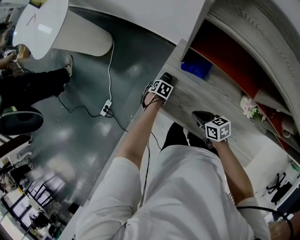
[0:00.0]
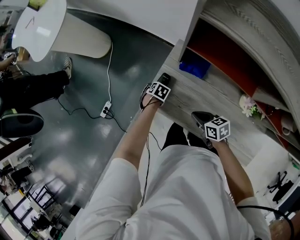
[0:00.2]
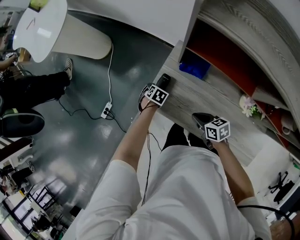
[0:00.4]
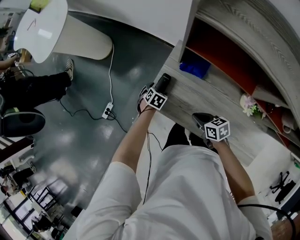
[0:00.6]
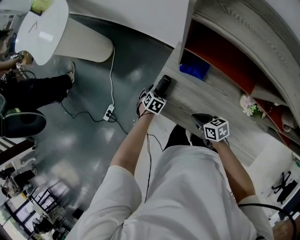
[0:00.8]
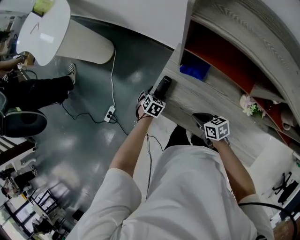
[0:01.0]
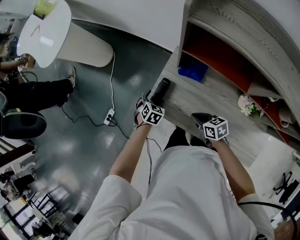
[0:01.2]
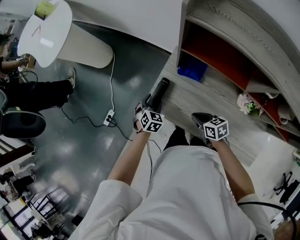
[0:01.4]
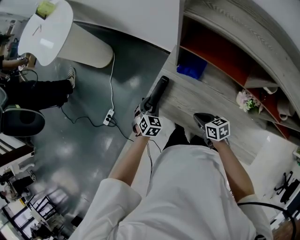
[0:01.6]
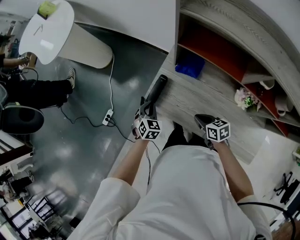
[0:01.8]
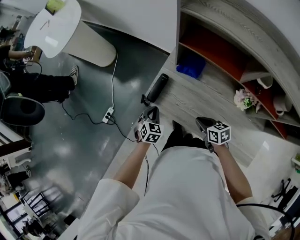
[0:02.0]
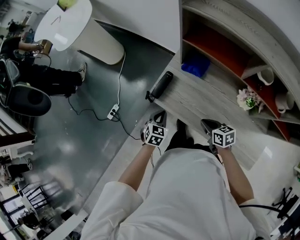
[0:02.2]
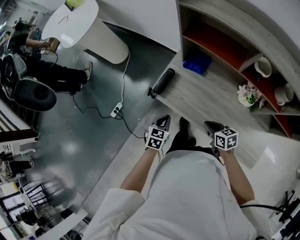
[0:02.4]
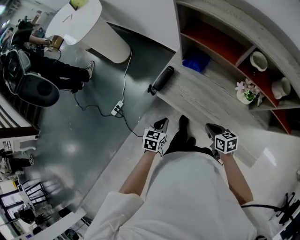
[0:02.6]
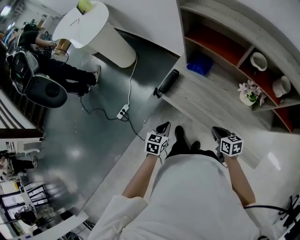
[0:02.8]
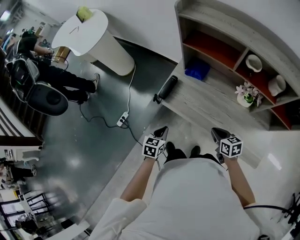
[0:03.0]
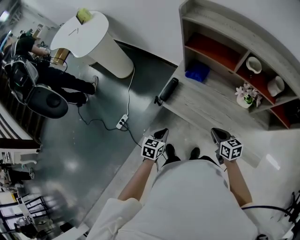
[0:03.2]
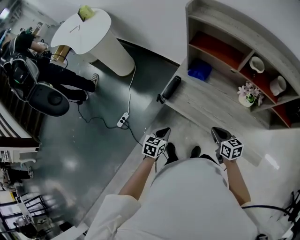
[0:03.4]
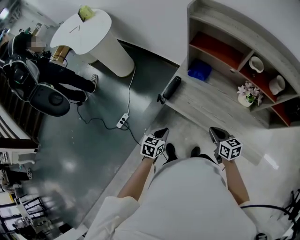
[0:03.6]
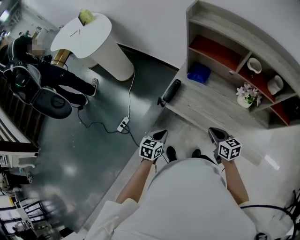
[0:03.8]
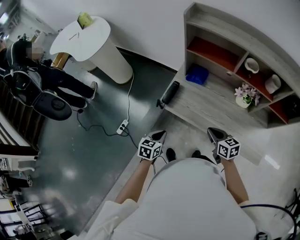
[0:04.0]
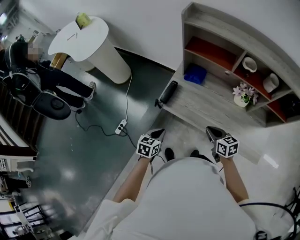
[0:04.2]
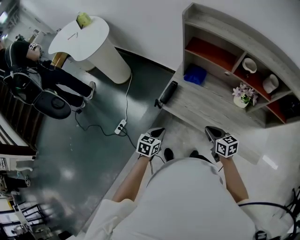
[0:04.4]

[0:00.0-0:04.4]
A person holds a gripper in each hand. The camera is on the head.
0:00.0 to 0:01.4: The left gripper moves upward, about 15 cm, and changes its angle by approximately 40 degrees.
0:01.4 to 0:03.0: Both grippers travel together backward, roughly 25 cm. The left gripper swivels roughly 30 degrees, and closes.
0:03.0 to 0:04.4: The right gripper goes approximately 10 cm to the left and upward, while the left gripper changes place by about 5 cm.

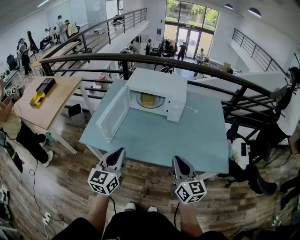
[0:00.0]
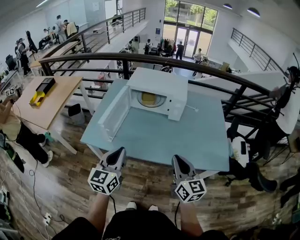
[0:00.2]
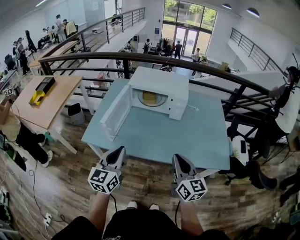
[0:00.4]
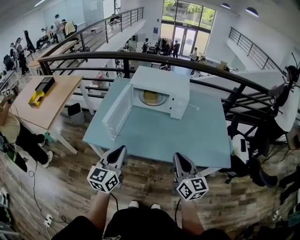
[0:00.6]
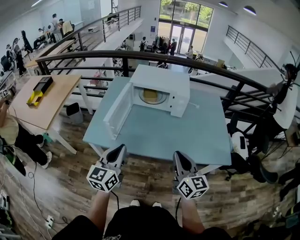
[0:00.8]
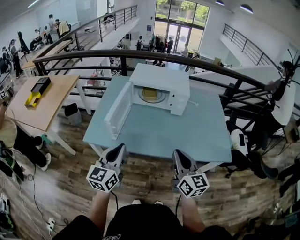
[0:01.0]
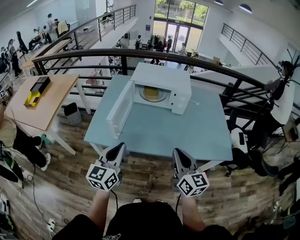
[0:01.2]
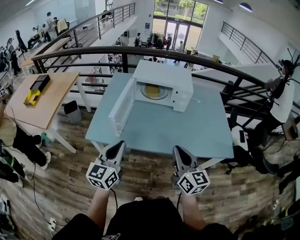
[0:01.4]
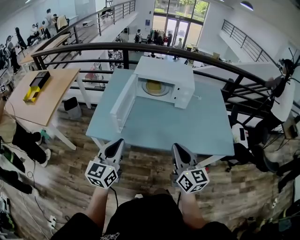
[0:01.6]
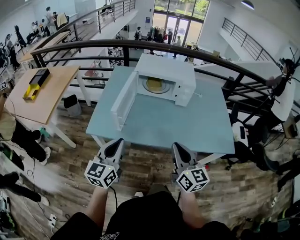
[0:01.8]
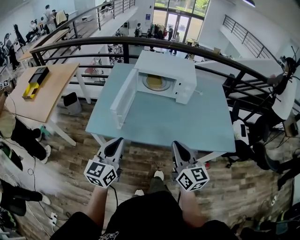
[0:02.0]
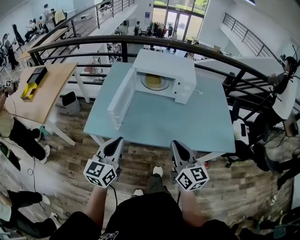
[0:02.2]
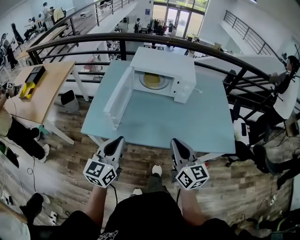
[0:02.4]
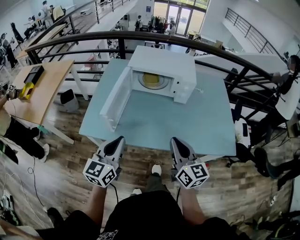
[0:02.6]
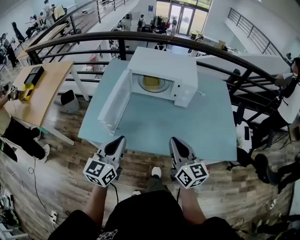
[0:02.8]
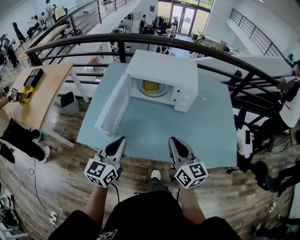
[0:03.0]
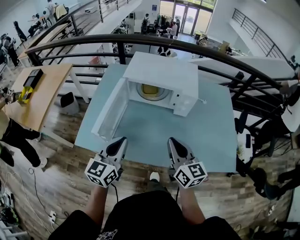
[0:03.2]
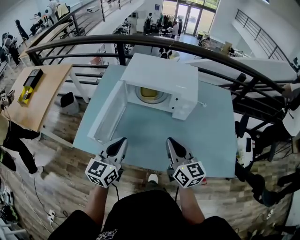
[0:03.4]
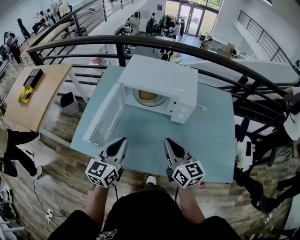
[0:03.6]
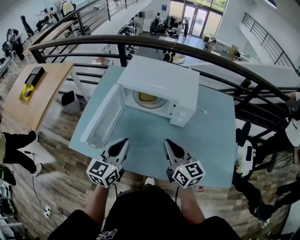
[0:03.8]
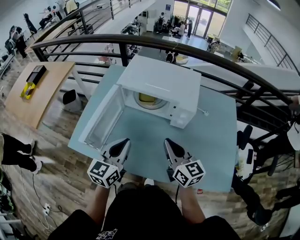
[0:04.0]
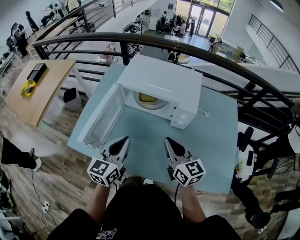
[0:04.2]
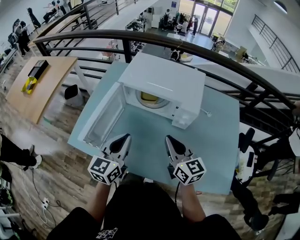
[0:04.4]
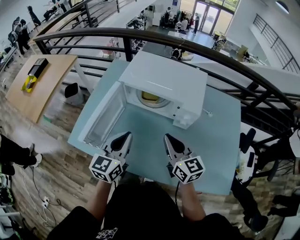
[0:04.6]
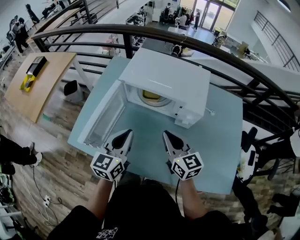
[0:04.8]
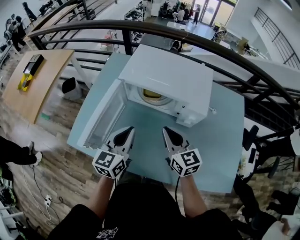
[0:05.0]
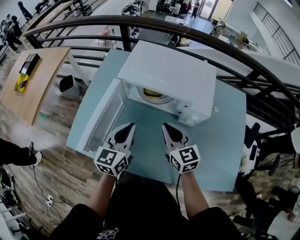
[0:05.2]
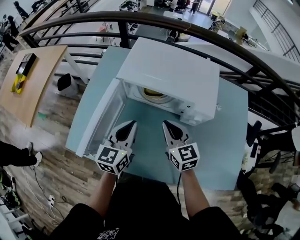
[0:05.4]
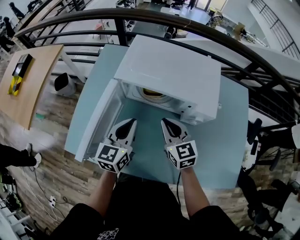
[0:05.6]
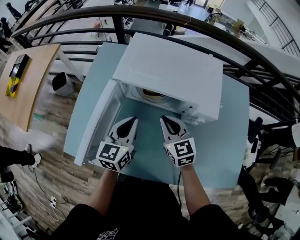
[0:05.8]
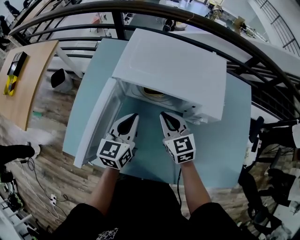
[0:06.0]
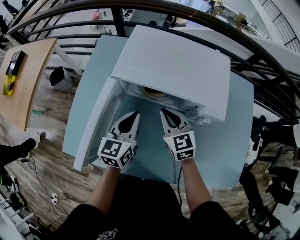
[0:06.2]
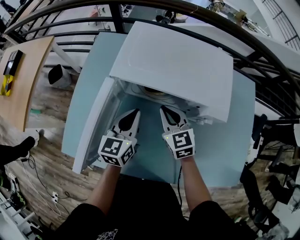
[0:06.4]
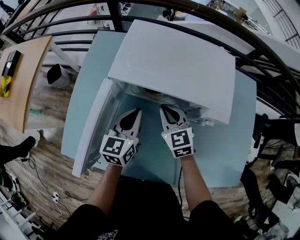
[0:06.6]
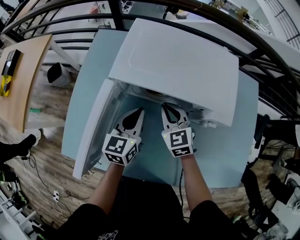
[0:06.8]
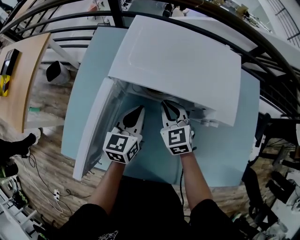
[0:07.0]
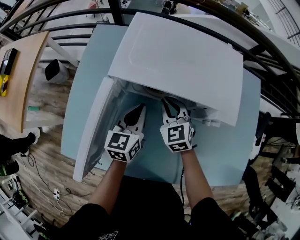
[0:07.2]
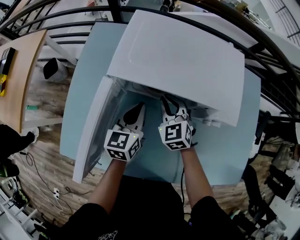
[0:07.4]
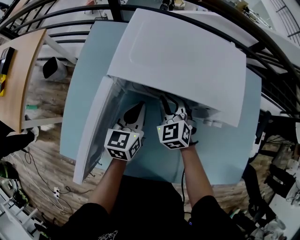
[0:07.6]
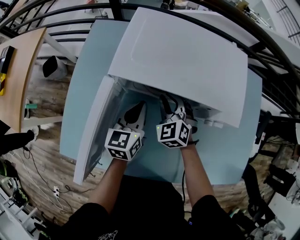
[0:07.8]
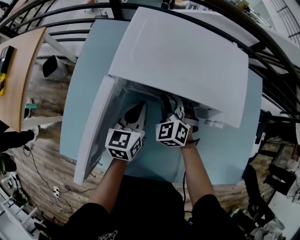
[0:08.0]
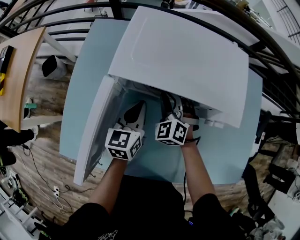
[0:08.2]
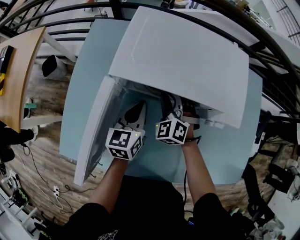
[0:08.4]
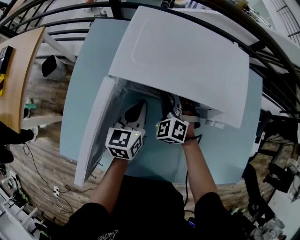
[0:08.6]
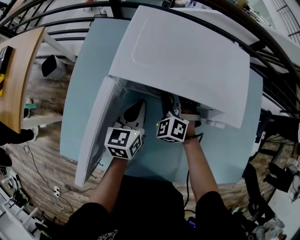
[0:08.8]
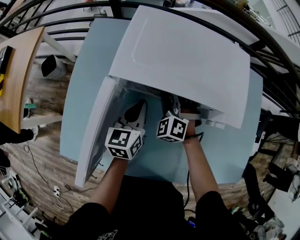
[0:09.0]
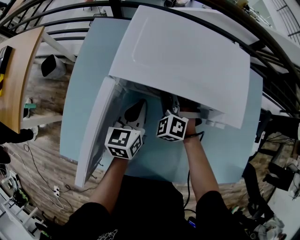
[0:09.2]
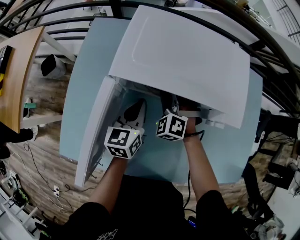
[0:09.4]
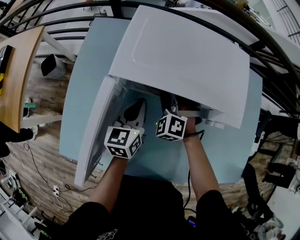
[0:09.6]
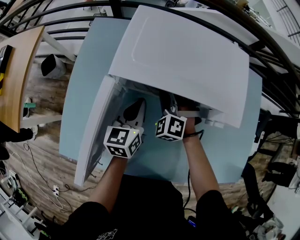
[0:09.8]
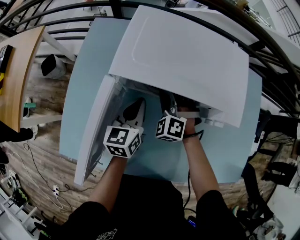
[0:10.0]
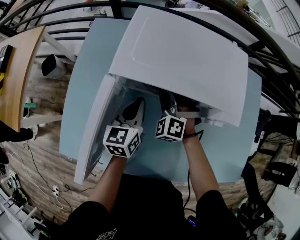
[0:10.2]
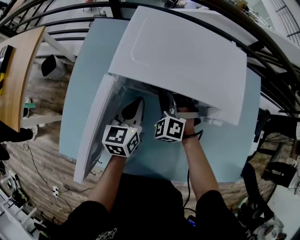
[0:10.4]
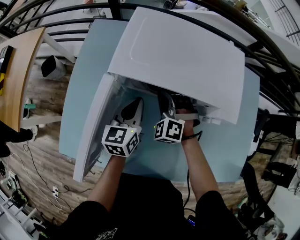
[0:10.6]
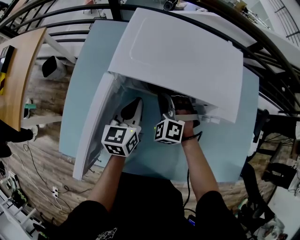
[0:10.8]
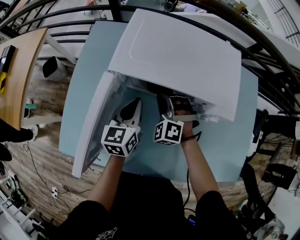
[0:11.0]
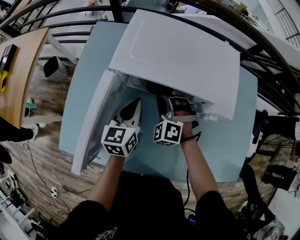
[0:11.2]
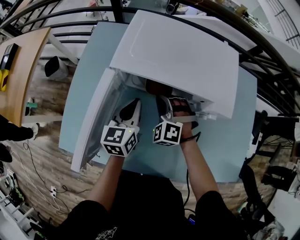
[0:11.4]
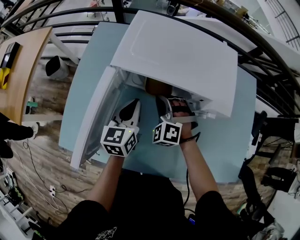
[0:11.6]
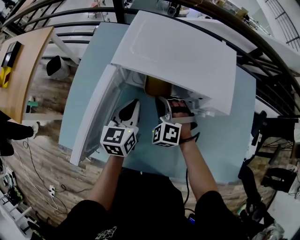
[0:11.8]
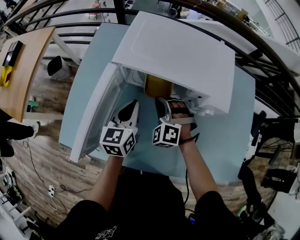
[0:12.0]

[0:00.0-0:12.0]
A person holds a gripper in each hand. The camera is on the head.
0:00.0 to 0:01.6: Both grippers move to the left, about 15 cm.
0:01.6 to 0:03.0: The left gripper is displaced forward and to the right by about 15 cm, while the right gripper moves forward, about 15 cm.
0:03.0 to 0:04.4: Both grippers travel together forward and to the right, roughly 15 cm.
0:04.4 to 0:06.0: The right gripper travels forward, downward and to the left by approximately 20 cm, and turns by roughly 20 degrees; the left gripper travels forward and downward by roughly 20 cm.
0:06.0 to 0:07.6: The grippers both shift downward and forward by some 10 cm. The right gripper swivels approximately 30 degrees.
0:07.6 to 0:09.0: The right gripper turns by some 30 degrees.
0:09.0 to 0:10.4: The grippers stay close to where they were, moving slightly.
0:10.4 to 0:12.0: Both grippers move backward, about 5 cm.

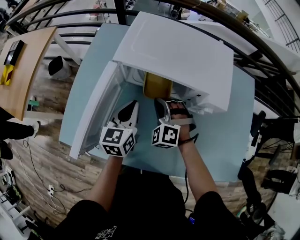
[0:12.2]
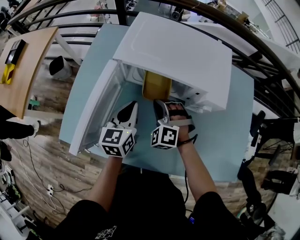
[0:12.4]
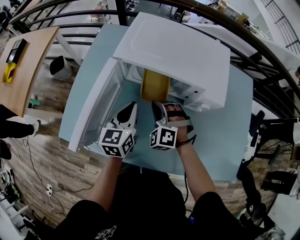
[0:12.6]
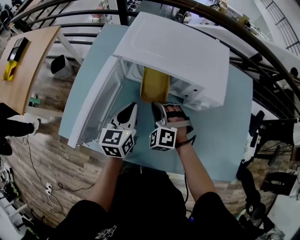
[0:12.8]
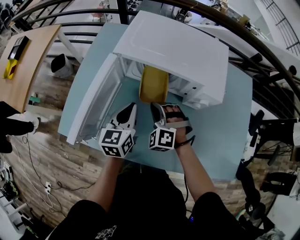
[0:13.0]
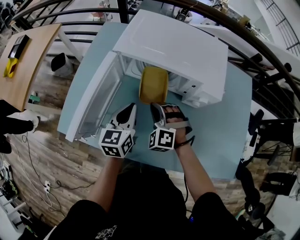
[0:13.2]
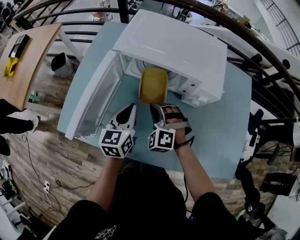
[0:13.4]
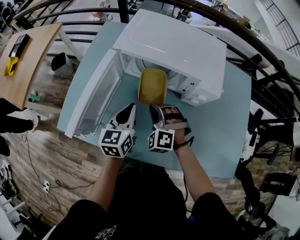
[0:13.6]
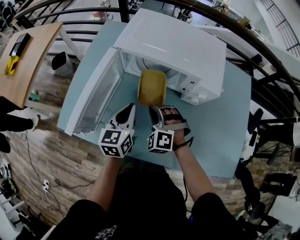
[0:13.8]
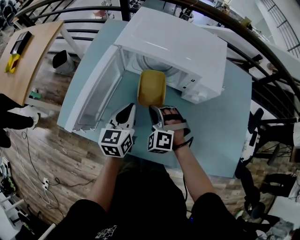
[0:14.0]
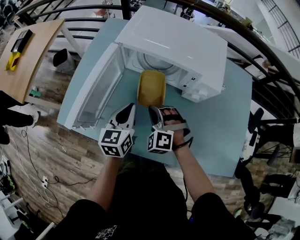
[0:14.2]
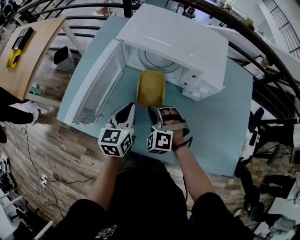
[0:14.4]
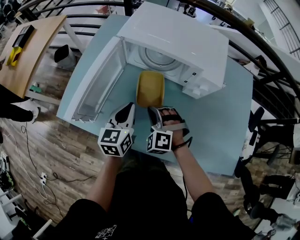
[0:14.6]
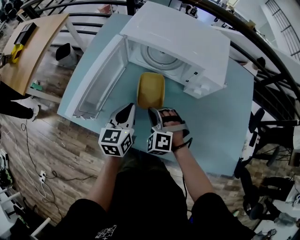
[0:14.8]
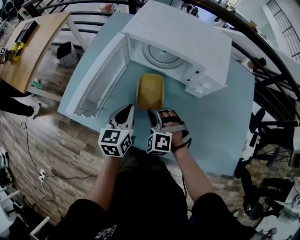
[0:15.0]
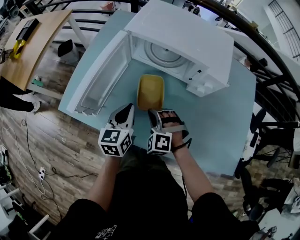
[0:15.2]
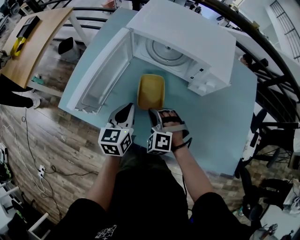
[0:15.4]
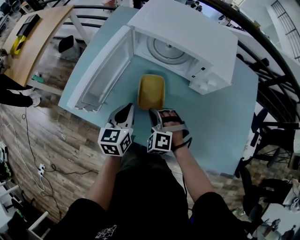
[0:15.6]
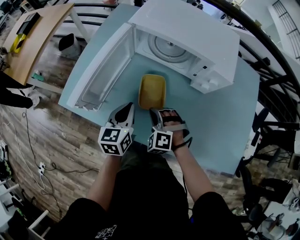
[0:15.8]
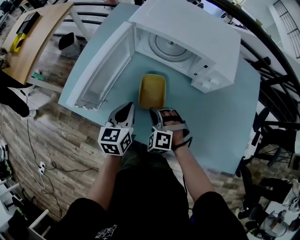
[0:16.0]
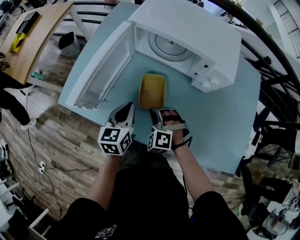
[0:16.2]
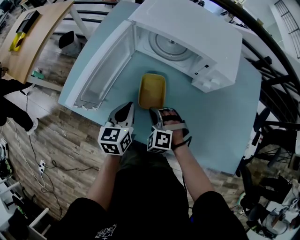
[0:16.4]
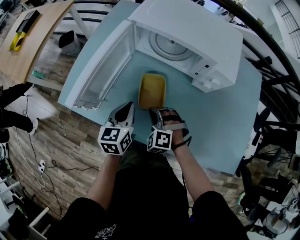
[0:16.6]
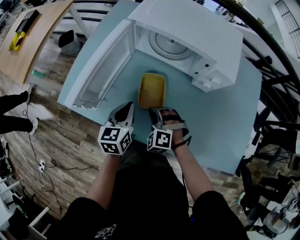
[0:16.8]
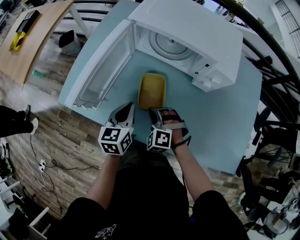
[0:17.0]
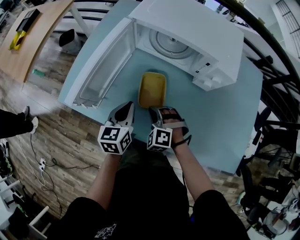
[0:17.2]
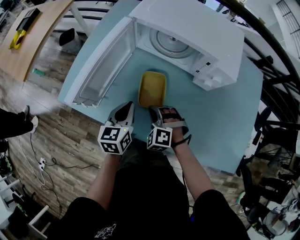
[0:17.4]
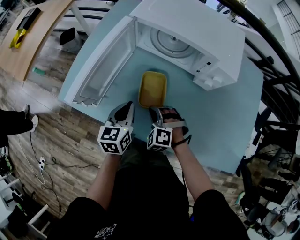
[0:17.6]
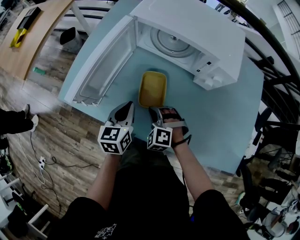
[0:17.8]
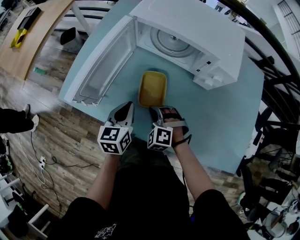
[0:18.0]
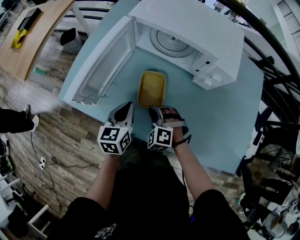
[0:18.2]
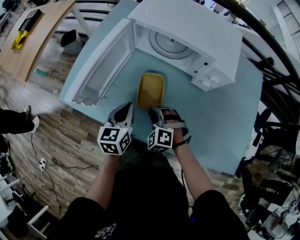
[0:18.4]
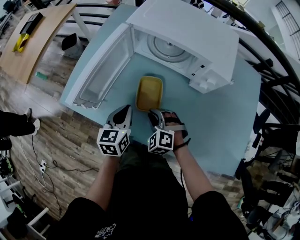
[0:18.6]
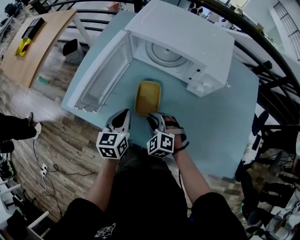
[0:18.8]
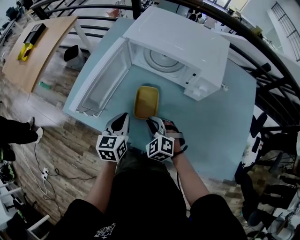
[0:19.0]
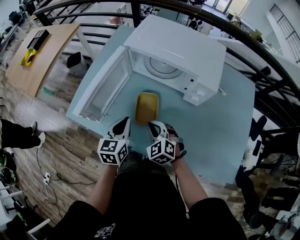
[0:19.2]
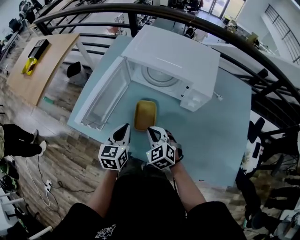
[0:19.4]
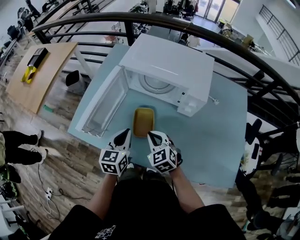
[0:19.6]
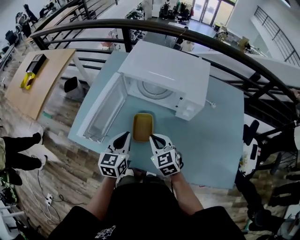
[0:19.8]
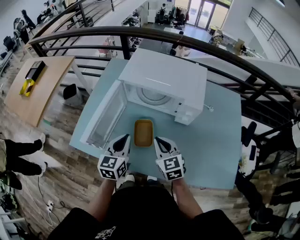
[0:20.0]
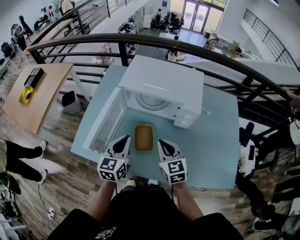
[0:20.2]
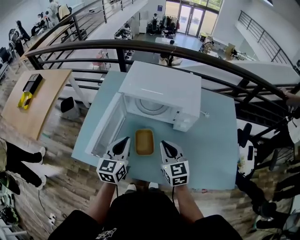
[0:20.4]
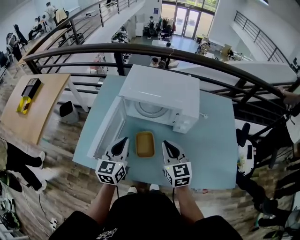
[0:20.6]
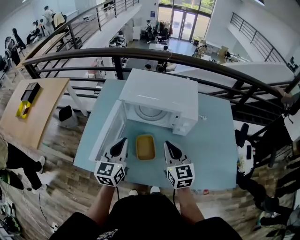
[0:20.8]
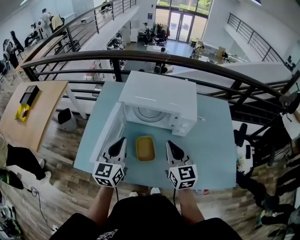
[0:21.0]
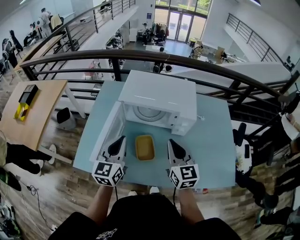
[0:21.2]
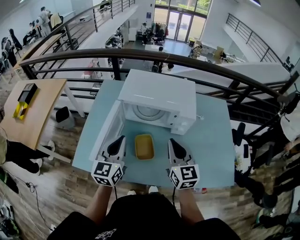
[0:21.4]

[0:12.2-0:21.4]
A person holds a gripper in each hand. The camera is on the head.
0:12.2 to 0:13.8: Both grippers travel together backward, some 10 cm.
0:13.8 to 0:15.2: Both grippers travel together backward, about 5 cm.
0:15.2 to 0:18.4: There are only small adjustments of the grippers.
0:18.4 to 0:19.8: The left gripper goes approximately 10 cm upward. The right gripper heads upward, covering about 15 cm, and rolls clockwise, seen from behind, by roughly 50 degrees.
0:19.8 to 0:21.4: Both grippers move upward, some 15 cm. The right gripper turns by approximately 30 degrees.
